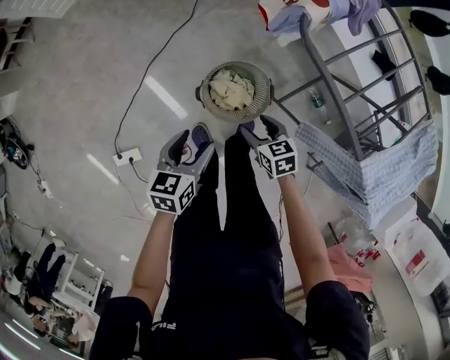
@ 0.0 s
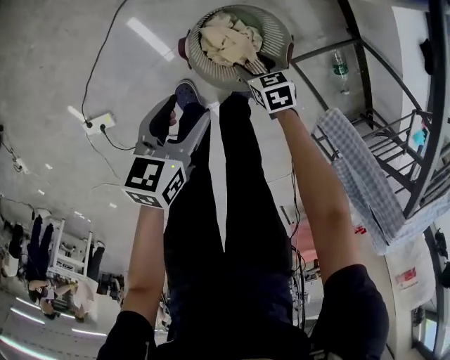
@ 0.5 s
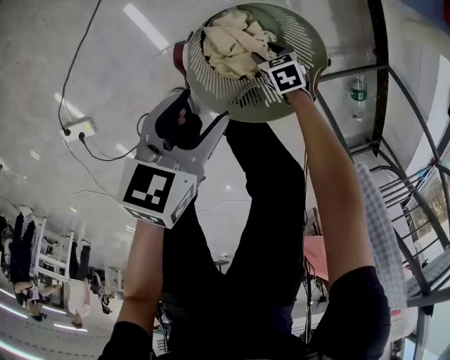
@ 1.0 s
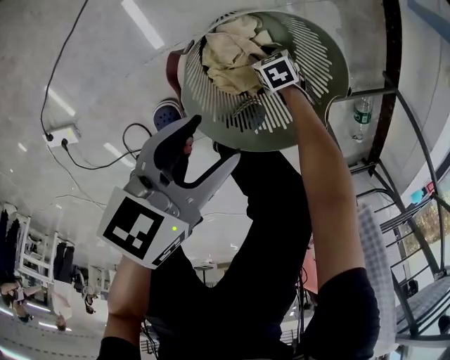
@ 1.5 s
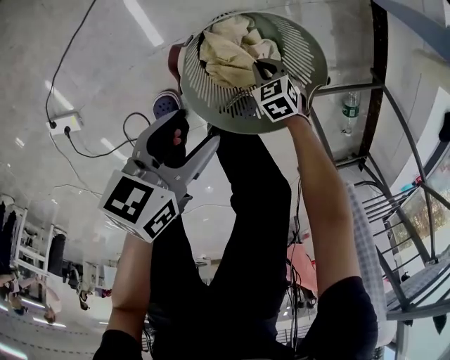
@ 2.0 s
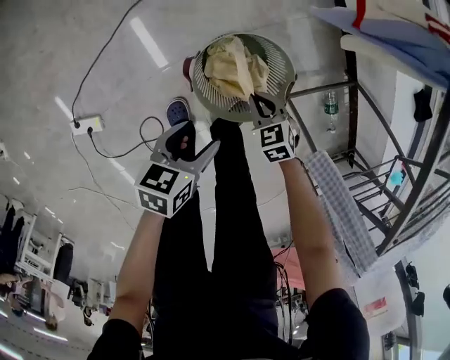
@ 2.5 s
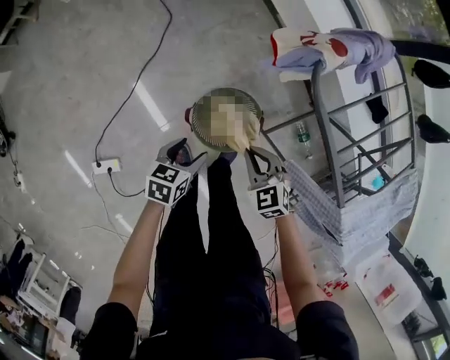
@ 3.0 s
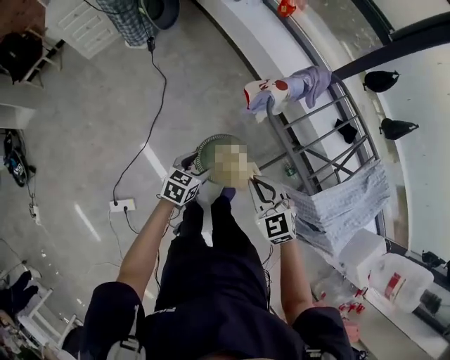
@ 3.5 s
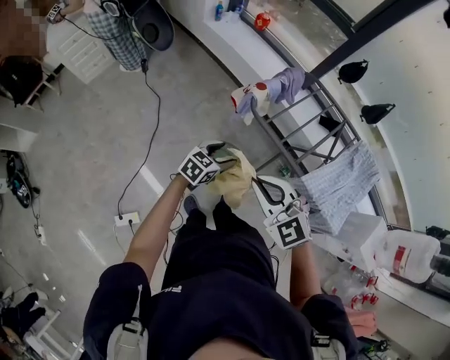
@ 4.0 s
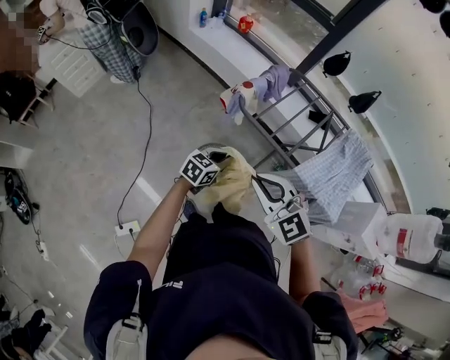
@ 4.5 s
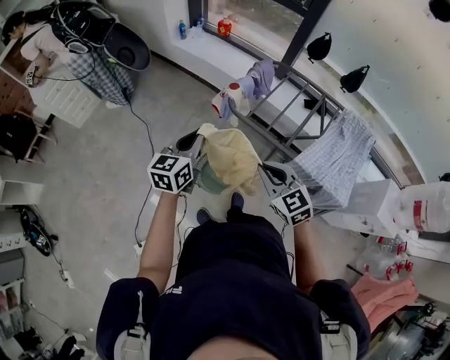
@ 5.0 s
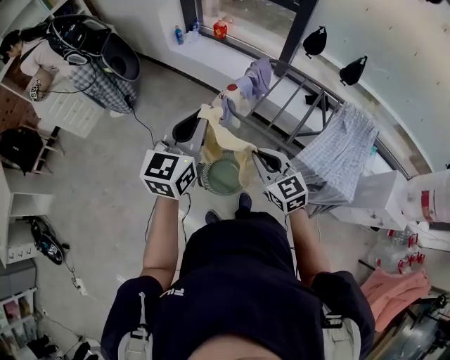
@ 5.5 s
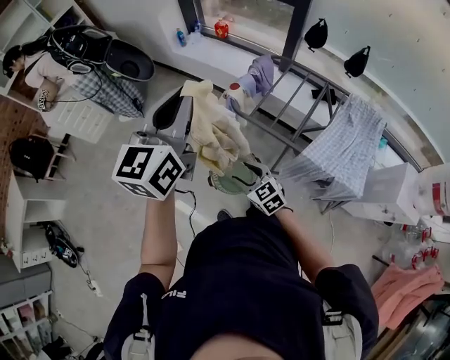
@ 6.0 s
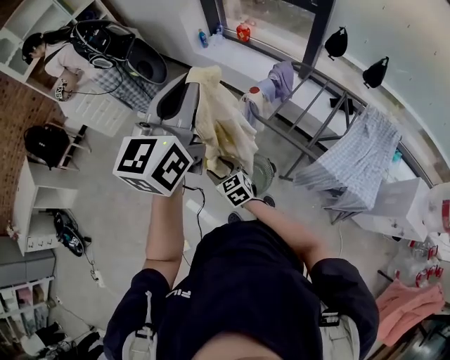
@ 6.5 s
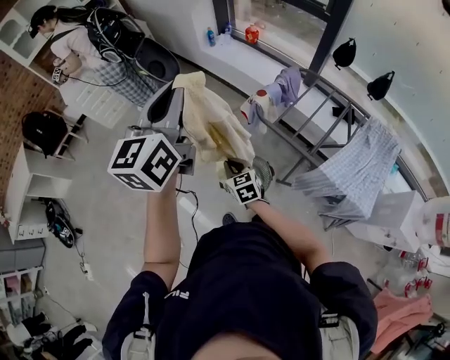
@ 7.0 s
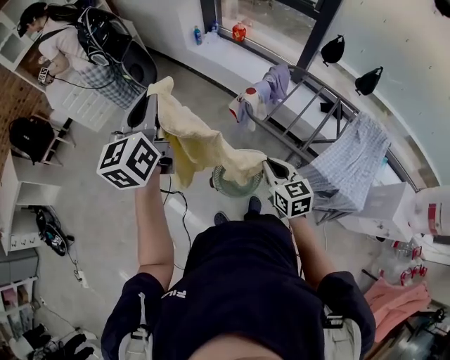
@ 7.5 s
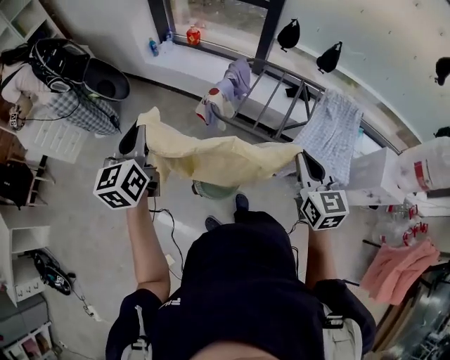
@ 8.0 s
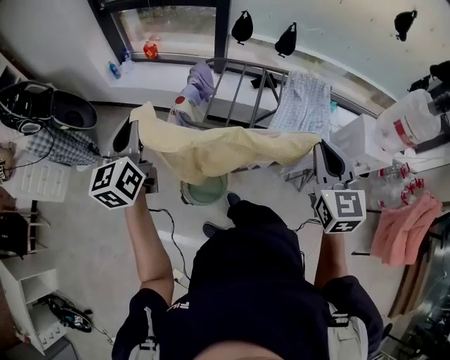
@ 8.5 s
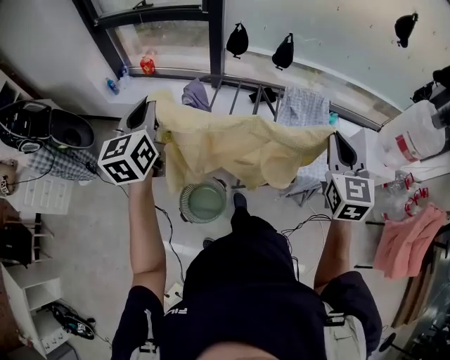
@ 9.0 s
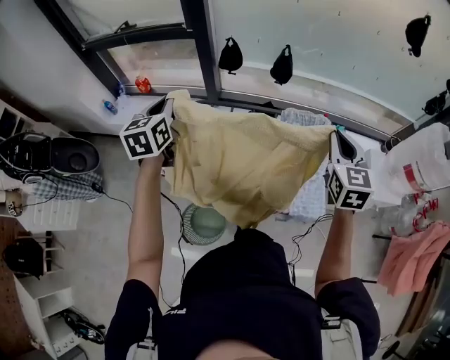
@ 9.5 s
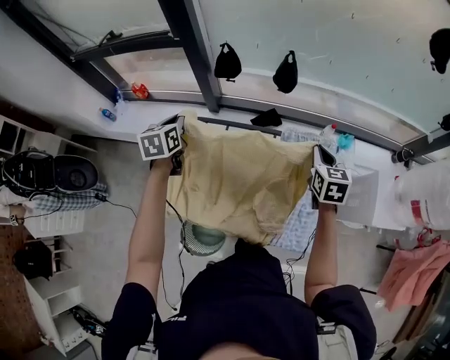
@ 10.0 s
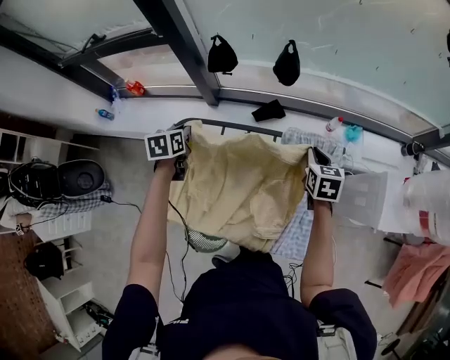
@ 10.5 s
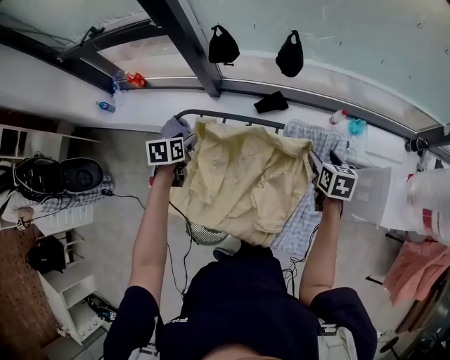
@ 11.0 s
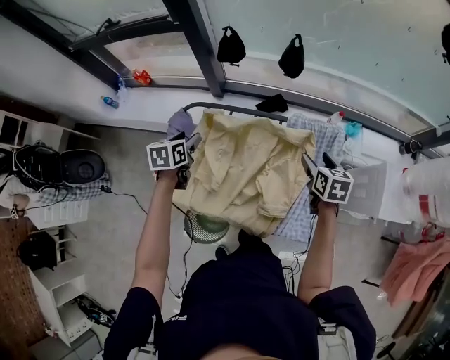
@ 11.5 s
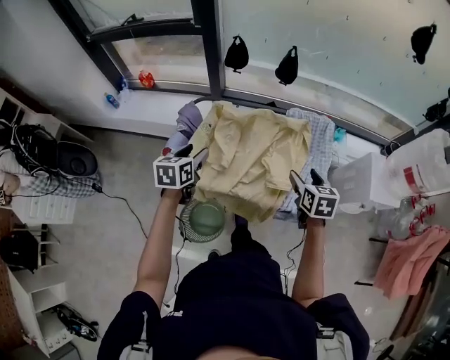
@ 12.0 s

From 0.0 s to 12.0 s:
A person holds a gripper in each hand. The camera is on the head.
From 0.0 s to 2.0 s: Both grippers travel together downward, about 40 cm. The right gripper changes its angle by approximately 40 degrees, and closes. The left gripper turns by approximately 20 degrees.
From 2.0 s to 4.0 s: The left gripper goes about 50 cm upward, and twists approximately 50 degrees clockwise, seen from behind, while the right gripper is displaced upward by about 90 cm, and tips its fingers upward by about 40 degrees.
From 4.0 s to 6.0 s: The left gripper heads upward, covering some 40 cm, points its fingers some 30 degrees further upward, and closes its fingers, while the right gripper travels downward by some 15 cm, turns by some 30 degrees, and opens up.
From 6.0 s to 8.0 s: The left gripper goes some 15 cm to the left and downward. Meanwhile the right gripper is displaced upward and to the right by roughly 30 cm, changes its angle by about 40 degrees, and closes its fingers.
From 8.0 s to 10.0 s: The pair of grippers is taken forward and to the right, about 60 cm. The left gripper rotates roughly 30 degrees. The right gripper swivels roughly 30 degrees.
From 10.0 s to 12.0 s: Both grippers move backward, approximately 25 cm. The left gripper opens its fingers. The right gripper opens.

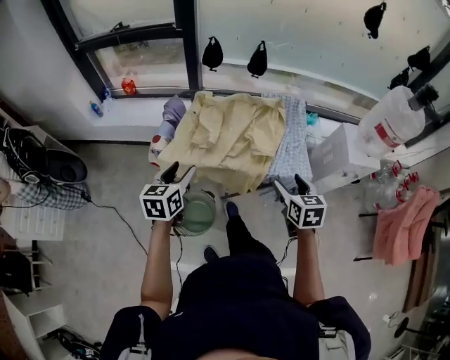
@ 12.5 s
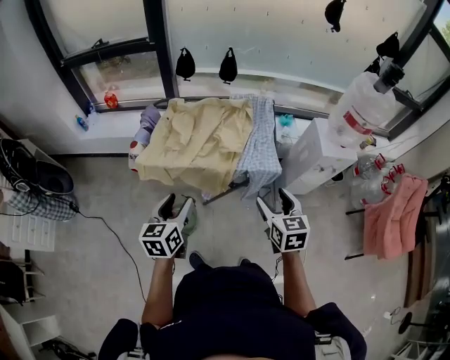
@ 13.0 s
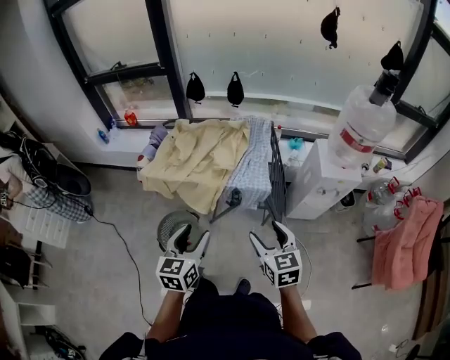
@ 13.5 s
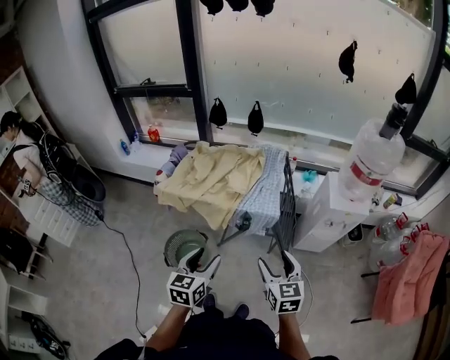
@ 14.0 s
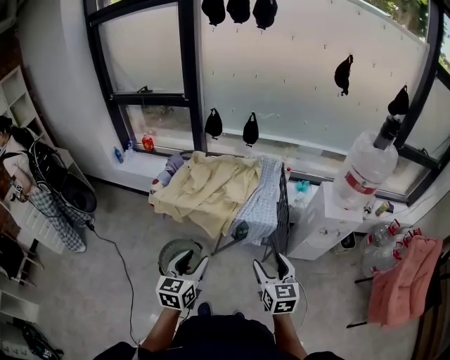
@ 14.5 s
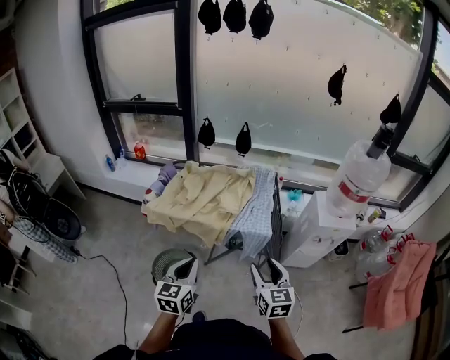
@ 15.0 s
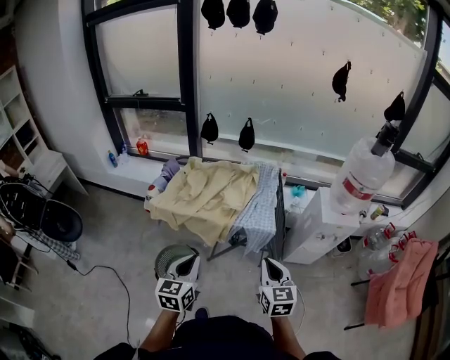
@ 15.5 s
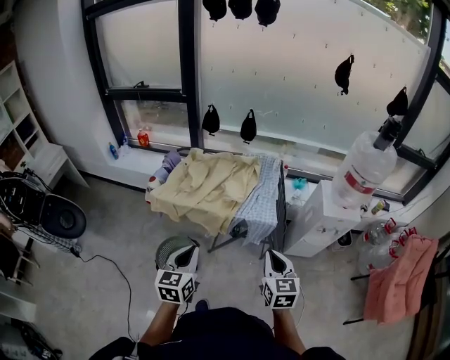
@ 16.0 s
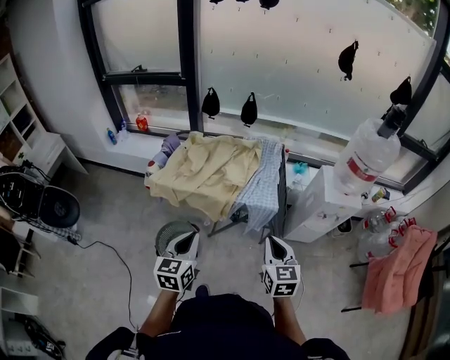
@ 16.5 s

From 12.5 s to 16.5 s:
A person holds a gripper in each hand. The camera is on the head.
From 12.5 s to 14.5 s: Both grippers move backward and to the right, roughly 30 cm.
From 14.5 s to 16.5 s: The right gripper closes; the left gripper closes up.

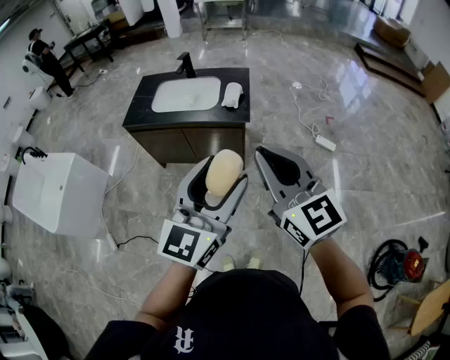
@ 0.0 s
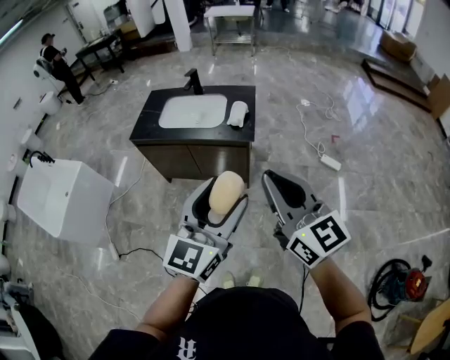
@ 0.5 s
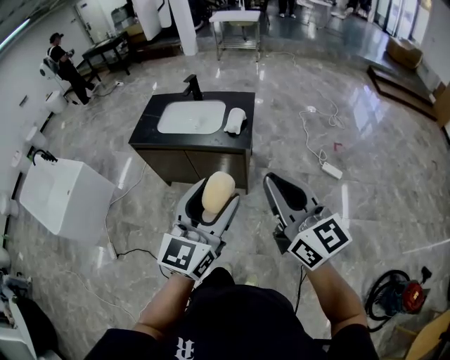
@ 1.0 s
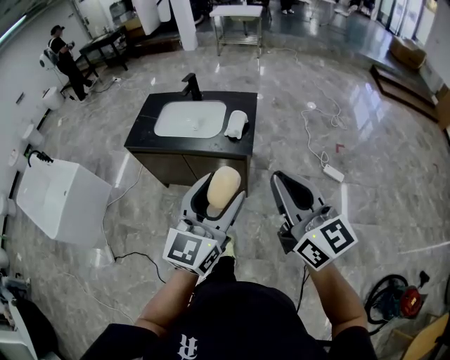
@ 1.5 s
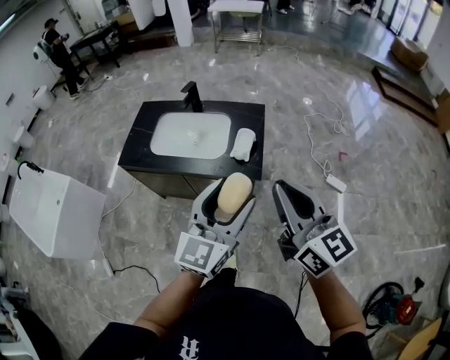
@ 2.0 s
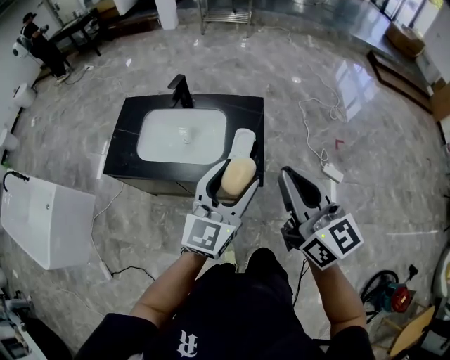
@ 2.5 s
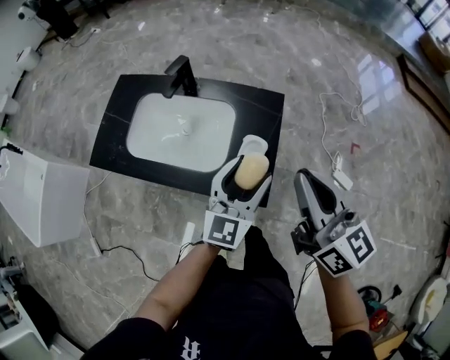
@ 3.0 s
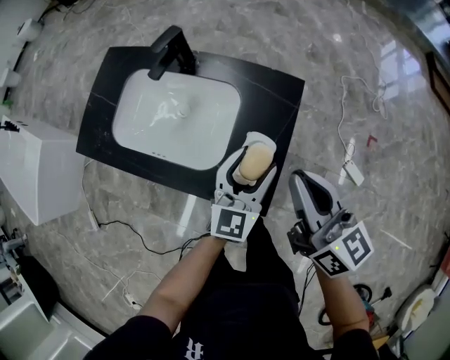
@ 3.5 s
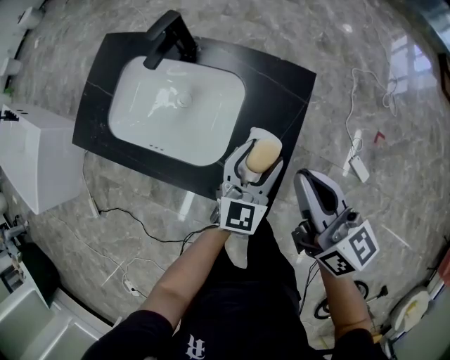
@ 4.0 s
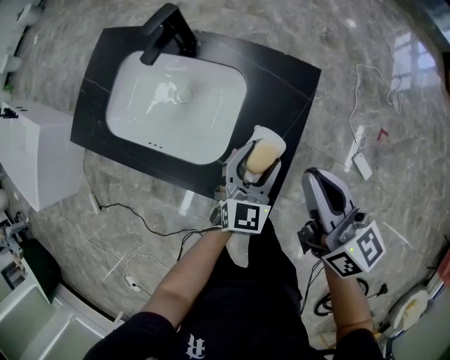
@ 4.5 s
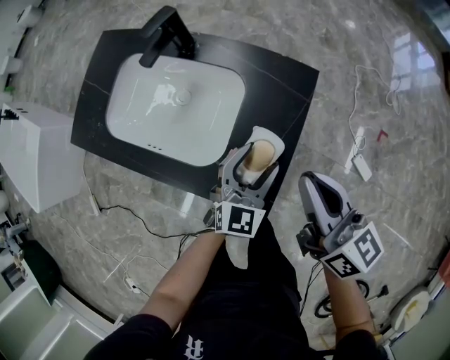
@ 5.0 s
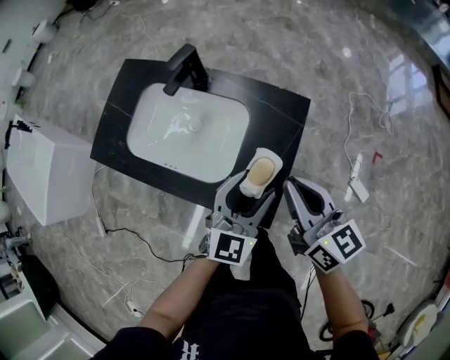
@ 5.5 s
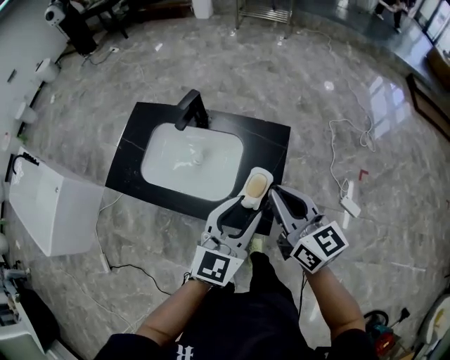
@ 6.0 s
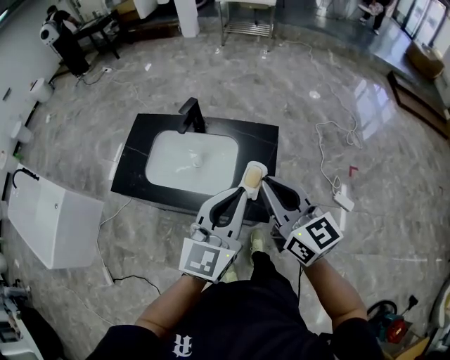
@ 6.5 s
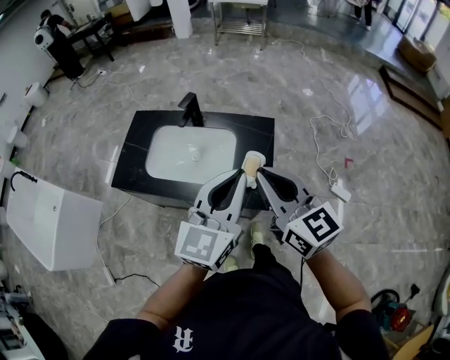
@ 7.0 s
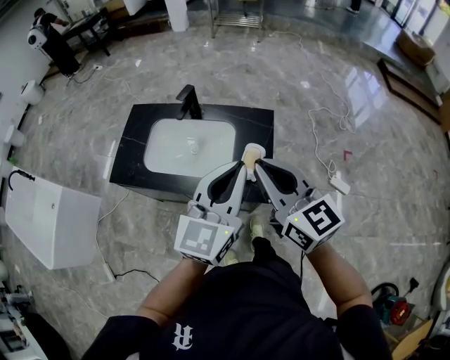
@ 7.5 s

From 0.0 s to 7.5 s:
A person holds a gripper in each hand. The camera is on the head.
From 0.0 s to 2.0 s: Both grippers move forward, roughly 25 cm.
From 2.0 s to 4.0 s: The two grippers go roughly 50 cm forward and downward. The right gripper swivels about 30 degrees; the left gripper changes its angle by about 20 degrees.
From 4.0 s to 5.5 s: The left gripper moves upward, about 10 cm.
From 5.5 s to 7.5 s: The right gripper shifts approximately 25 cm upward, backward and to the left, and rotates roughly 20 degrees, while the left gripper is displaced upward and backward by about 30 cm, swivels approximately 20 degrees, and closes.

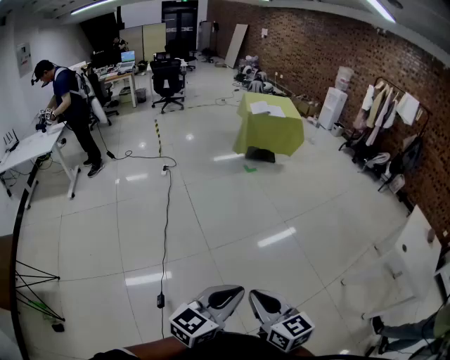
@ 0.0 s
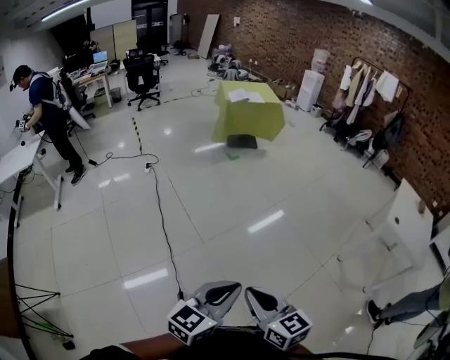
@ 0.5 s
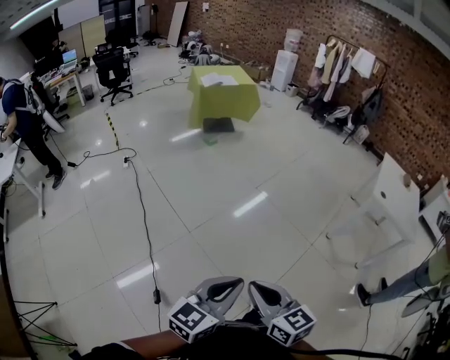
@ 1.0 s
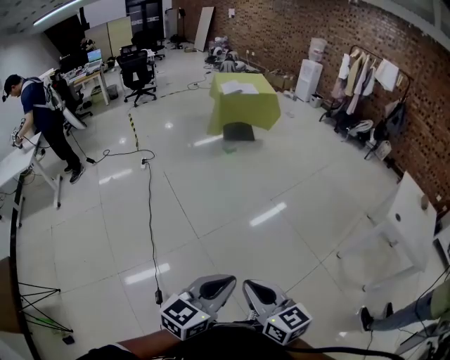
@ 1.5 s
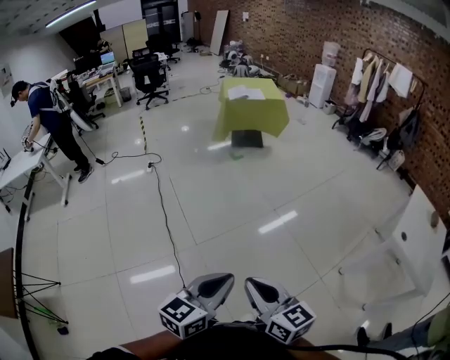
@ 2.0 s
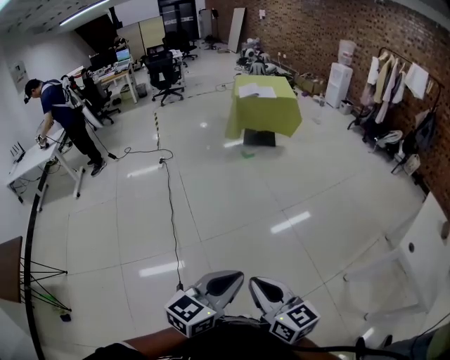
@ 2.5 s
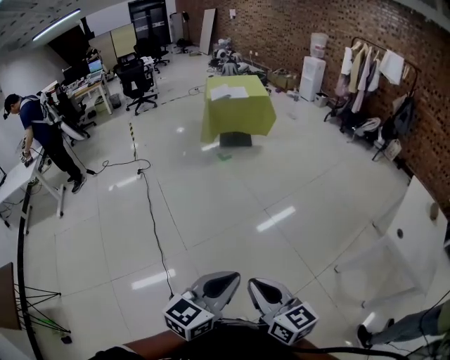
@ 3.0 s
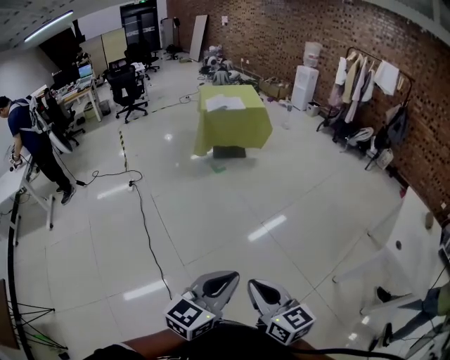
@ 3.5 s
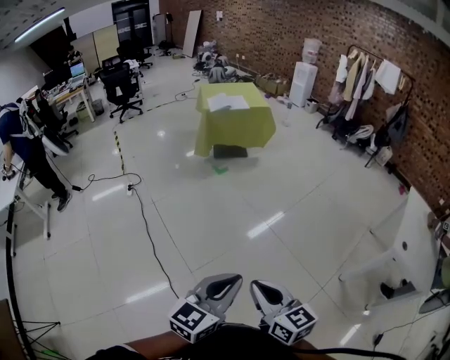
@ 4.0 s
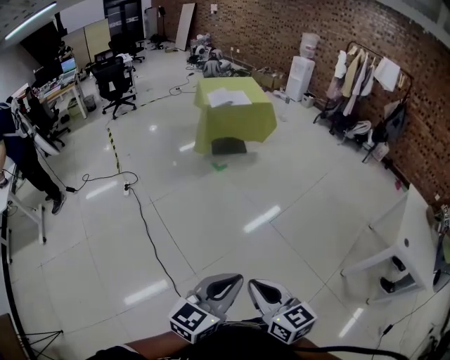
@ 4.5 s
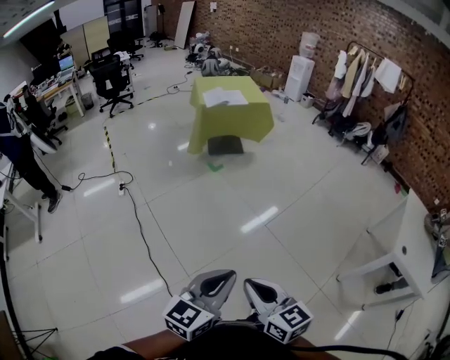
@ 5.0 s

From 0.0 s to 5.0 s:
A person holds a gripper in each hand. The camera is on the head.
From 0.0 s to 2.5 s: The grippers both shift to the right and forward by roughly 25 cm.
From 2.5 s to 5.0 s: The two grippers go about 30 cm forward and to the left.
